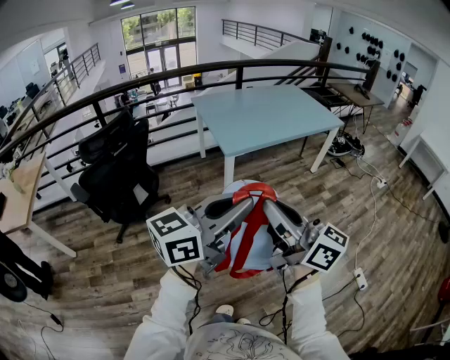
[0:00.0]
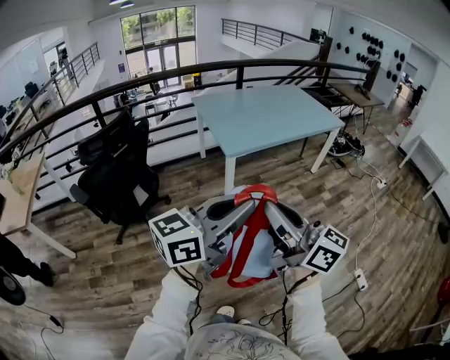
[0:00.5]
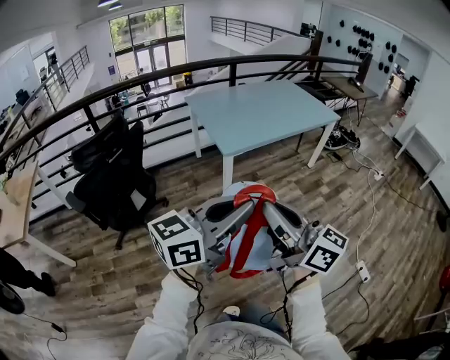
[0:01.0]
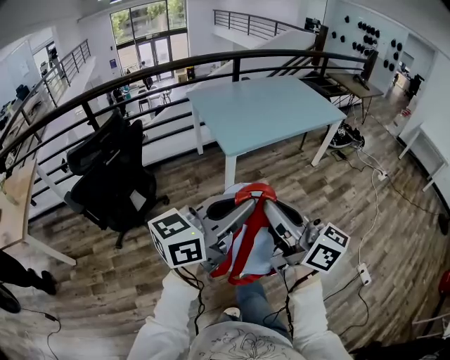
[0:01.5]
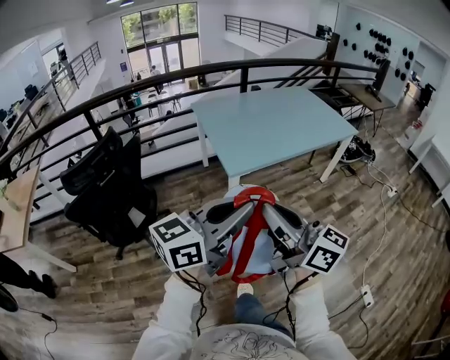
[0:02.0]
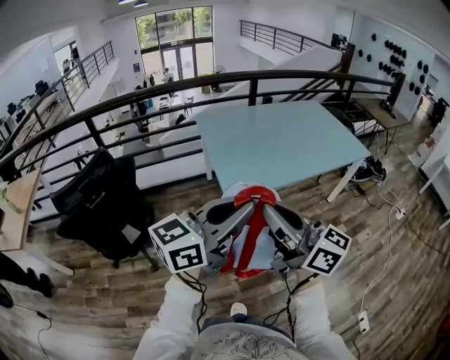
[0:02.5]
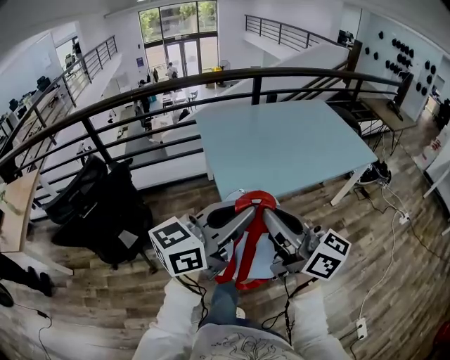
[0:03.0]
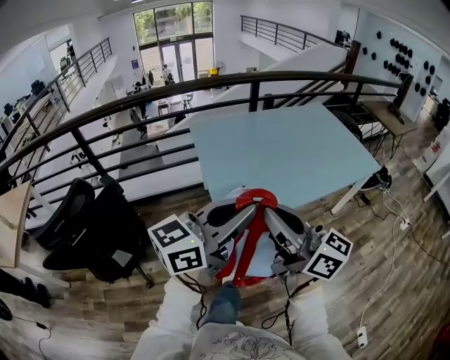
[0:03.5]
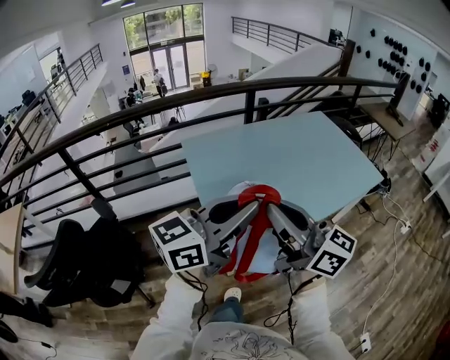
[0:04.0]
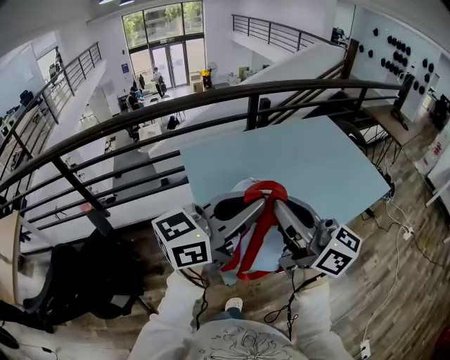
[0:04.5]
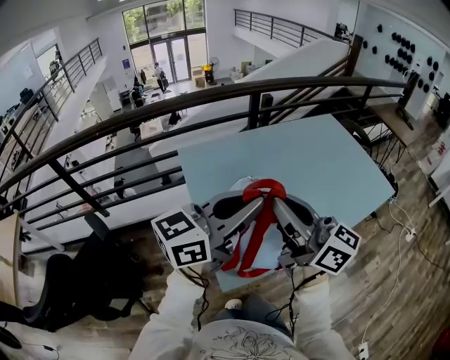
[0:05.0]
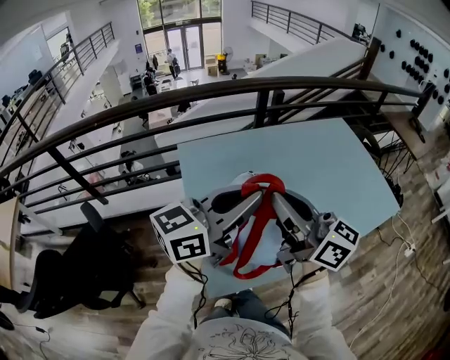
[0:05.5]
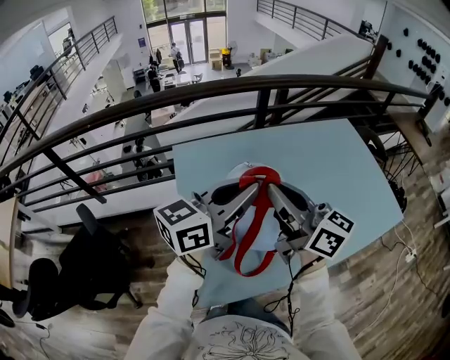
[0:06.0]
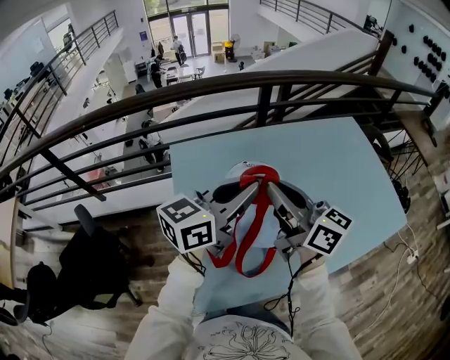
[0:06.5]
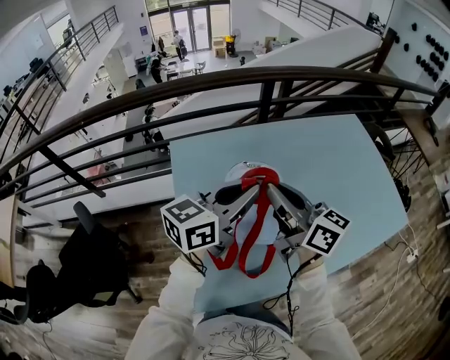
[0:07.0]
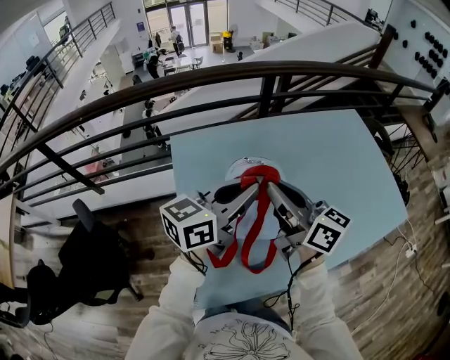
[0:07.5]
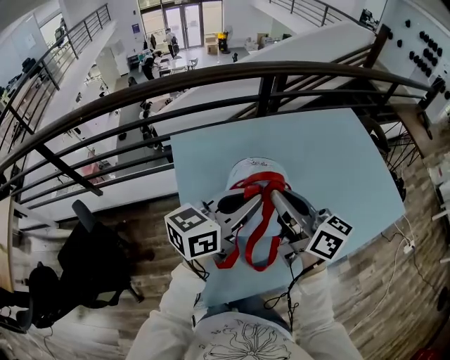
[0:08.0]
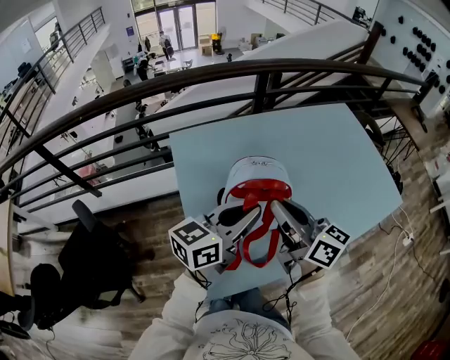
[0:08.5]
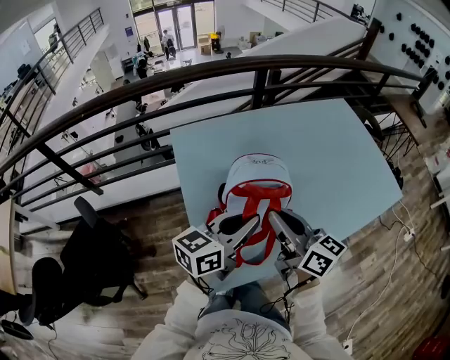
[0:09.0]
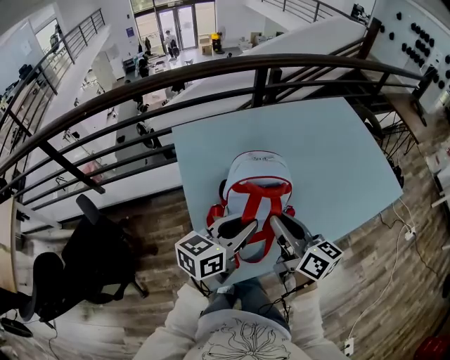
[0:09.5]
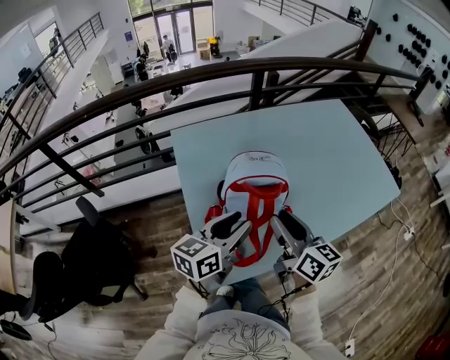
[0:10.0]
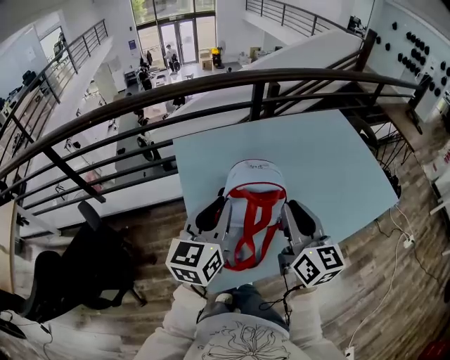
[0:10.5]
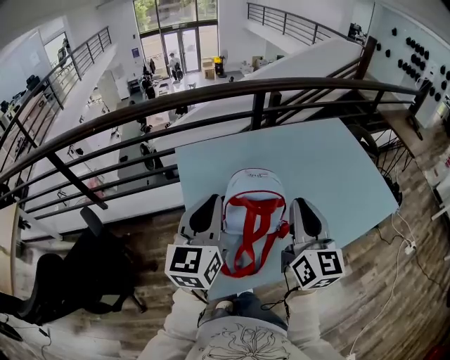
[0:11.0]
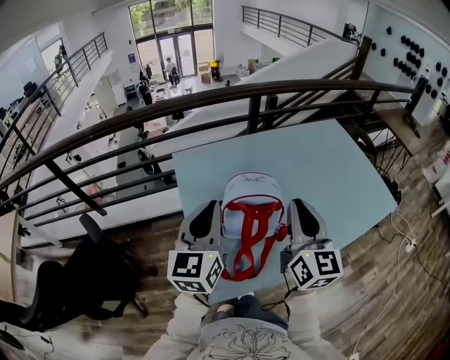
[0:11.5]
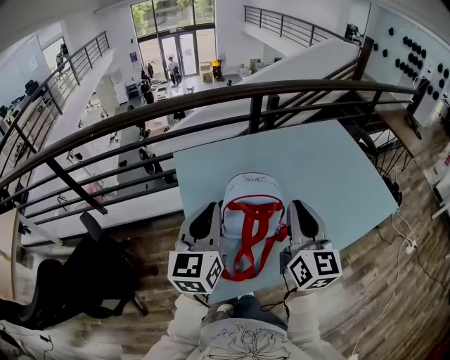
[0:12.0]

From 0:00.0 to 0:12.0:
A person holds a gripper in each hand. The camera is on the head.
From 0:00.0 to 0:02.0: The grippers both shift forward by approximately 20 cm.
From 0:02.0 to 0:04.0: The two grippers travel together, forward, some 50 cm.
From 0:04.0 to 0:06.0: The grippers both shift forward by some 35 cm.
From 0:06.0 to 0:08.0: The two grippers go approximately 5 cm downward.
From 0:08.0 to 0:10.0: Both grippers move backward and downward, some 15 cm. The right gripper opens its fingers, while the left gripper opens.
From 0:10.0 to 0:12.0: The right gripper moves upward, about 10 cm, turns by roughly 30 degrees, and closes up, while the left gripper goes approximately 15 cm upward and to the left, rotates roughly 40 degrees, and closes its fingers.

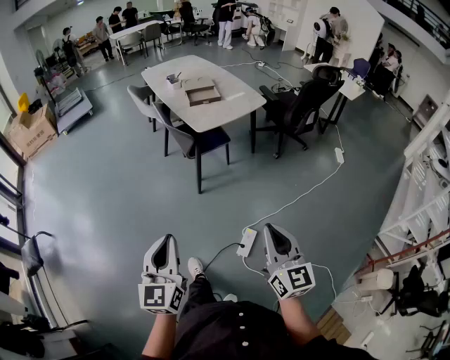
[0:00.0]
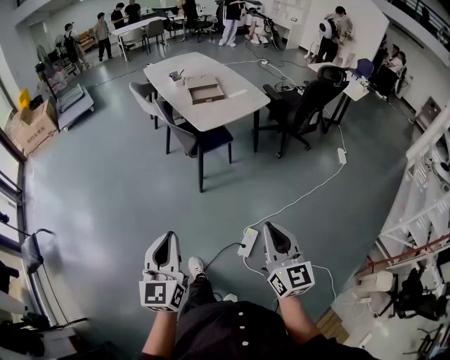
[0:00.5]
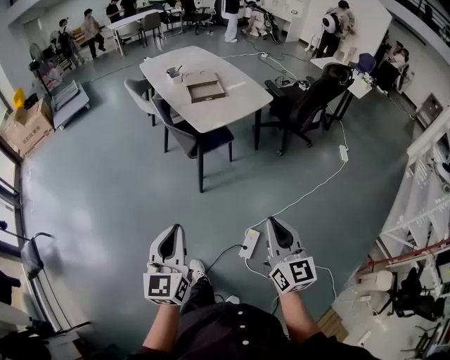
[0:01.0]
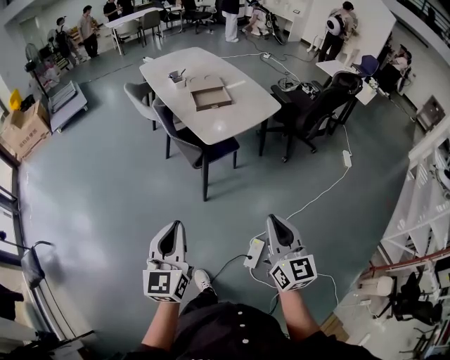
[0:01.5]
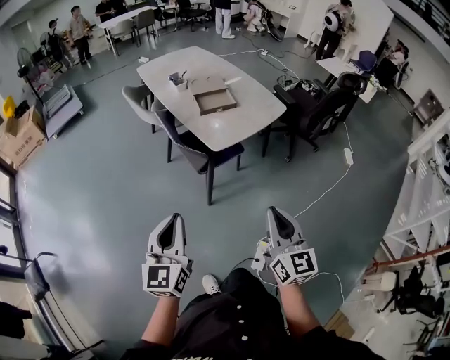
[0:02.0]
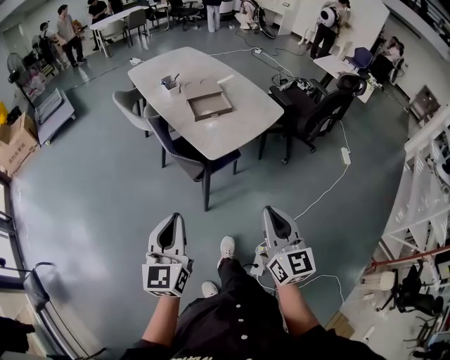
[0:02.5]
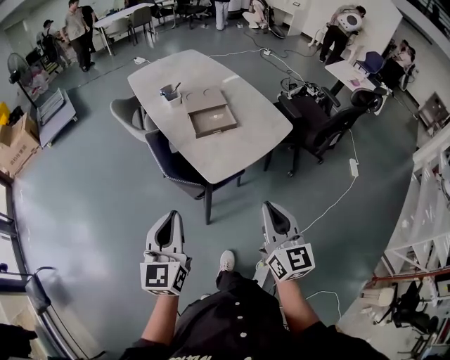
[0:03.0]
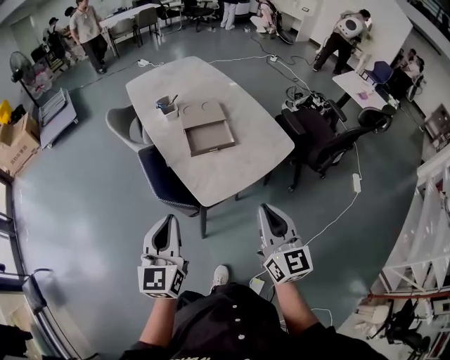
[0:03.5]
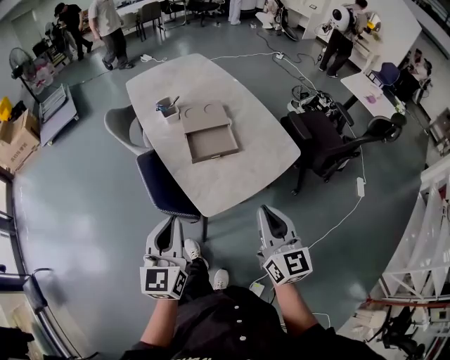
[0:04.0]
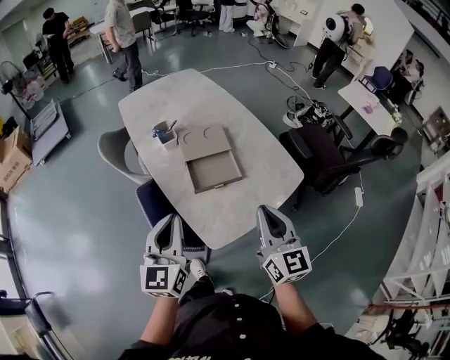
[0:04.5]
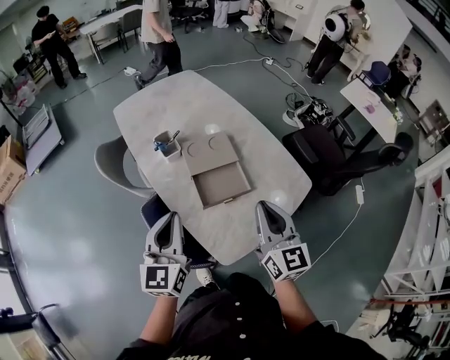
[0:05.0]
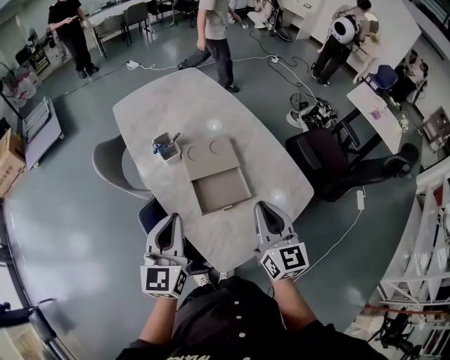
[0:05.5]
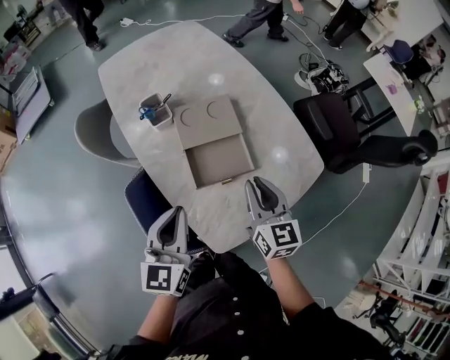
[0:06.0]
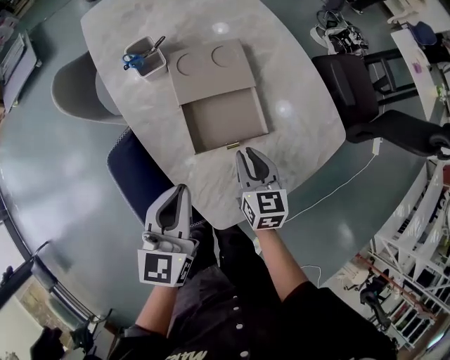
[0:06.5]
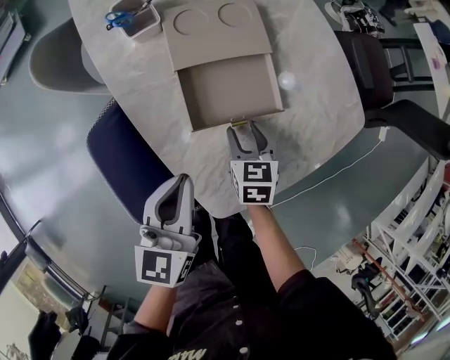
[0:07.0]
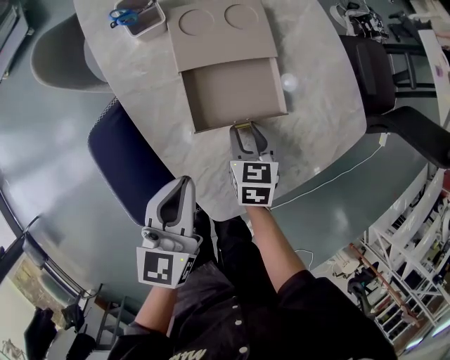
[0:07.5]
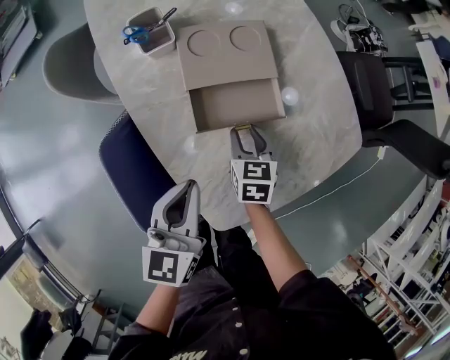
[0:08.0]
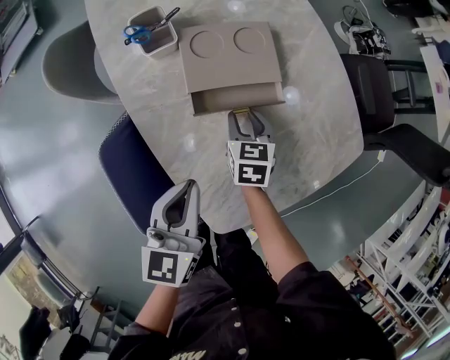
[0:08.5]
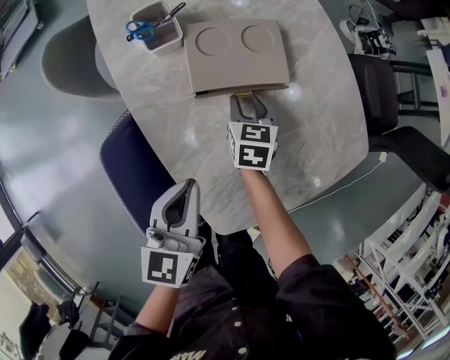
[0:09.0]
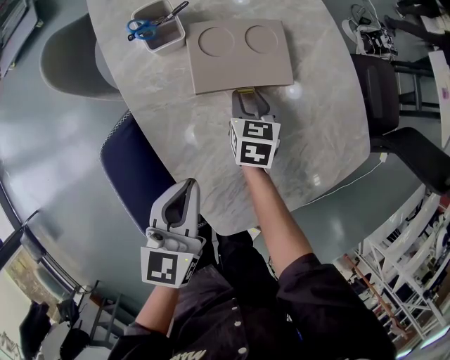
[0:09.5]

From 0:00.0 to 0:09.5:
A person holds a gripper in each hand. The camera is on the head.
From 0:00.0 to 0:02.0: Both grippers travel together forward, roughly 30 cm.
From 0:02.0 to 0:04.0: The grippers both shift forward by roughly 35 cm.
From 0:04.0 to 0:05.5: The two grippers go approximately 25 cm forward.
From 0:05.5 to 0:07.5: The right gripper shifts about 35 cm downward, tilts its fingers approximately 40 degrees downward, and opens its fingers, while the left gripper moves downward, approximately 20 cm, and turns by about 20 degrees.
From 0:07.5 to 0:09.5: The right gripper goes about 15 cm forward.

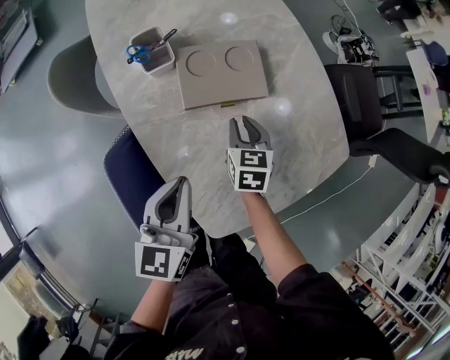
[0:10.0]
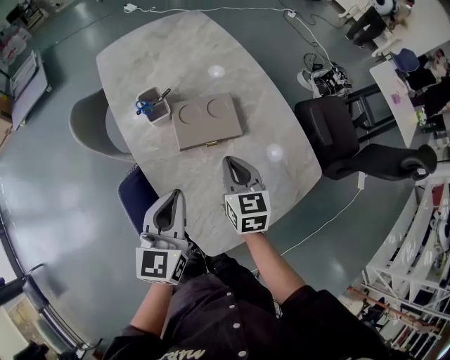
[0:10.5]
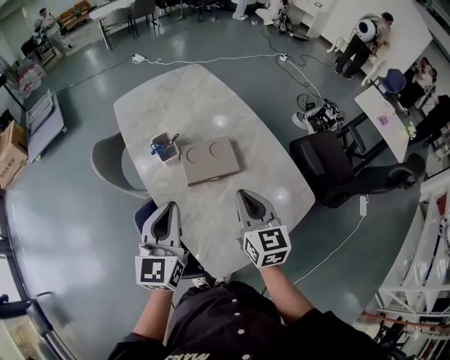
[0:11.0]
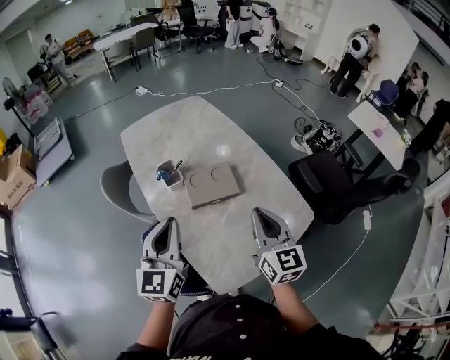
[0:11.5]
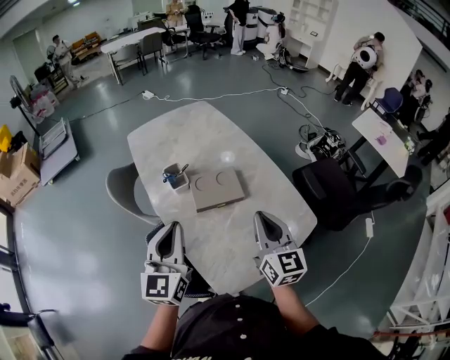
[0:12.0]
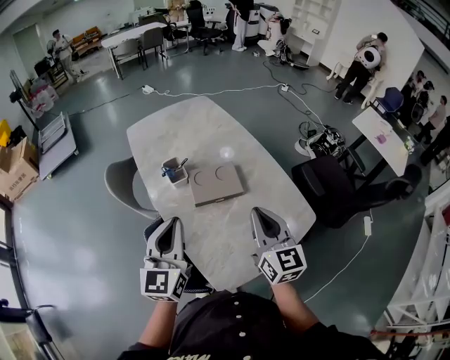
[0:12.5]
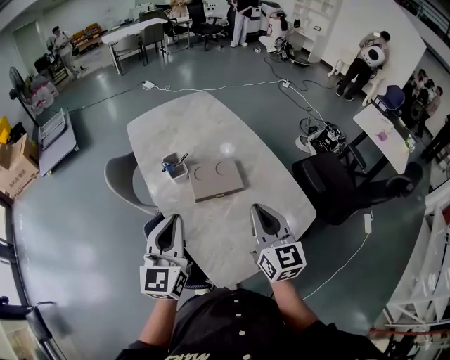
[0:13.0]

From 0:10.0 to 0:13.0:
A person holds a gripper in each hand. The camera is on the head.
From 0:10.0 to 0:11.5: The left gripper moves upward, some 20 cm, and rotates approximately 20 degrees. Meanwhile the right gripper heads upward and backward, covering some 35 cm, tips its fingers upward by approximately 40 degrees, and closes.
From 0:11.5 to 0:13.0: The grippers move only a little.

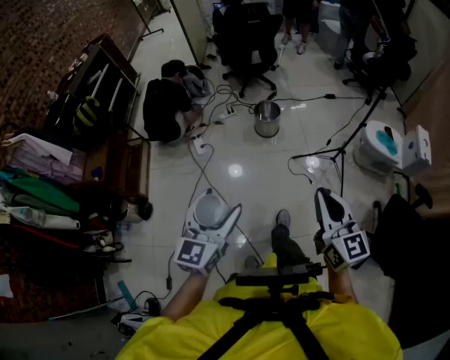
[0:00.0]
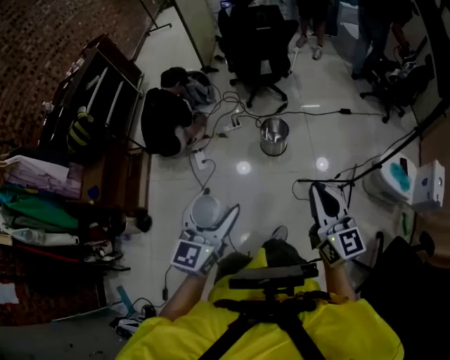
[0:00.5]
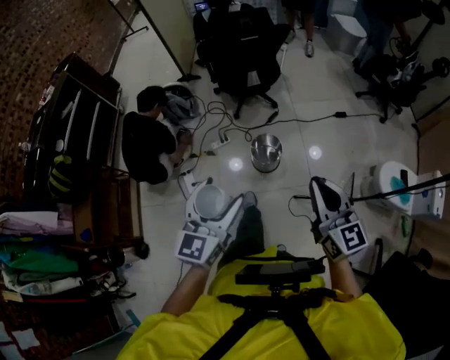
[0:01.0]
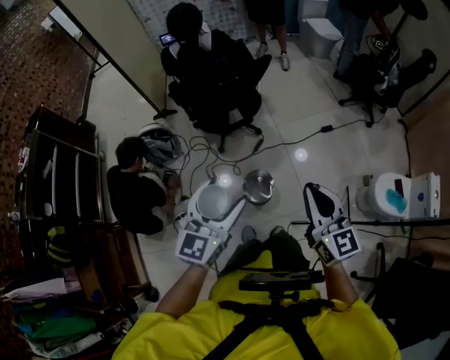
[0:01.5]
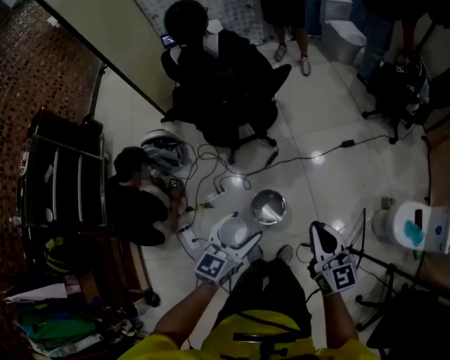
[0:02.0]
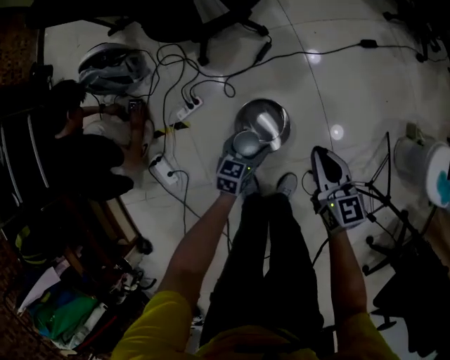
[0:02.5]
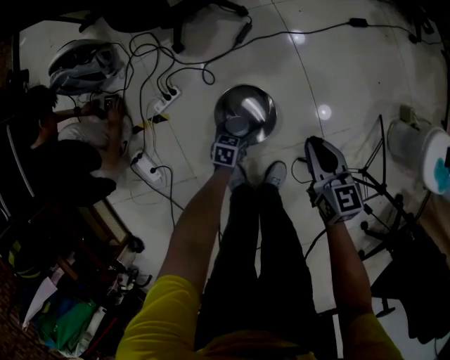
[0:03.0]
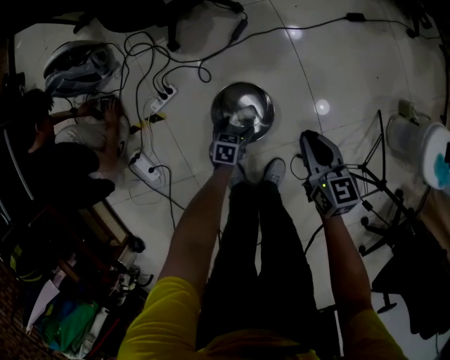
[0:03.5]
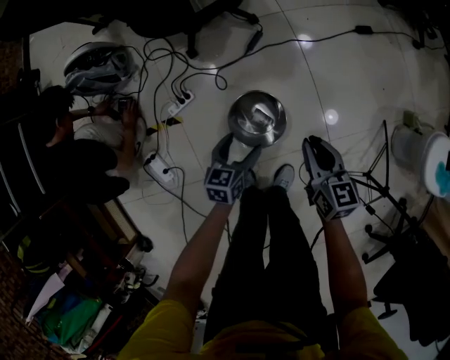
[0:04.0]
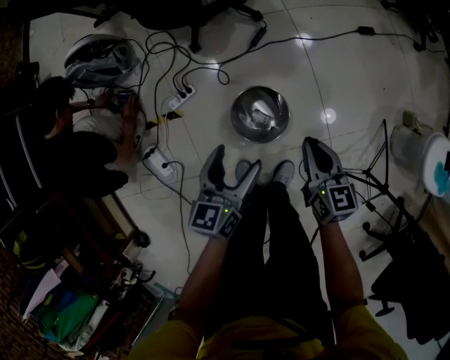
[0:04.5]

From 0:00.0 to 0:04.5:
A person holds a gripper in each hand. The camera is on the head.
From 0:00.0 to 0:02.0: The two grippers travel together, forward, roughly 80 cm. The left gripper changes its angle by about 20 degrees.
From 0:02.0 to 0:04.5: The grippers both shift downward by about 35 cm. The left gripper turns by approximately 20 degrees, while the right gripper changes its angle by about 20 degrees.
